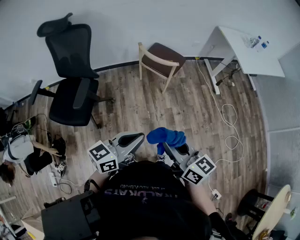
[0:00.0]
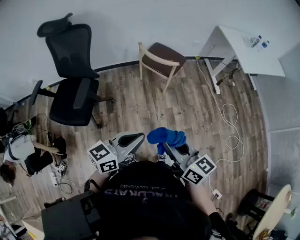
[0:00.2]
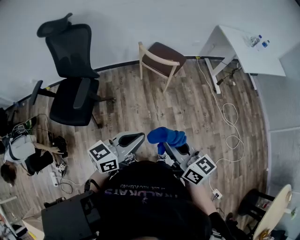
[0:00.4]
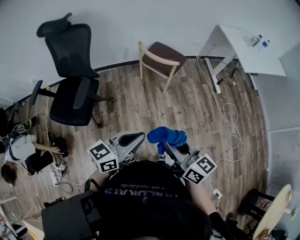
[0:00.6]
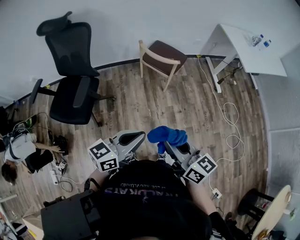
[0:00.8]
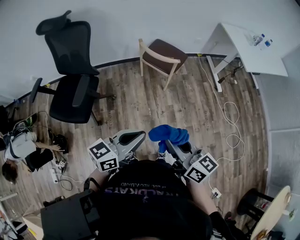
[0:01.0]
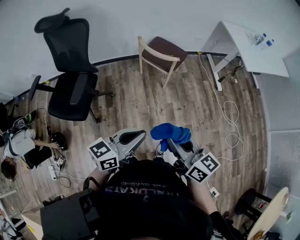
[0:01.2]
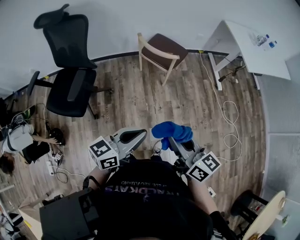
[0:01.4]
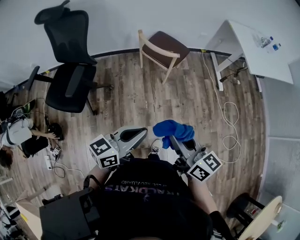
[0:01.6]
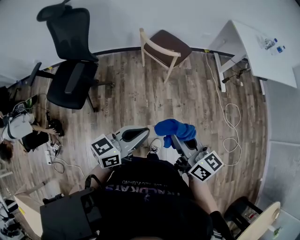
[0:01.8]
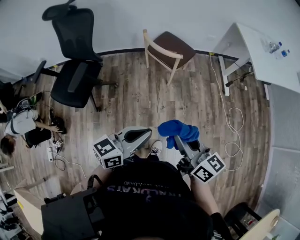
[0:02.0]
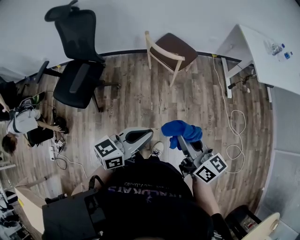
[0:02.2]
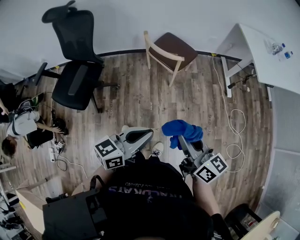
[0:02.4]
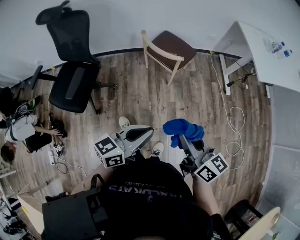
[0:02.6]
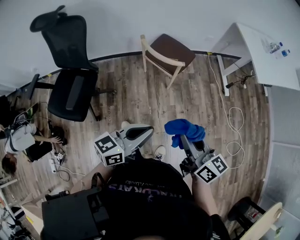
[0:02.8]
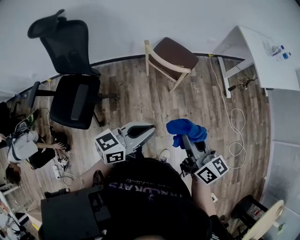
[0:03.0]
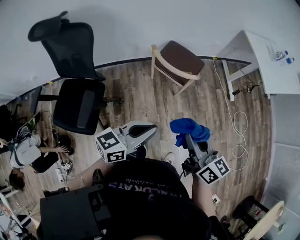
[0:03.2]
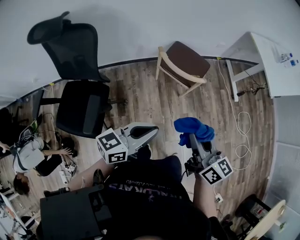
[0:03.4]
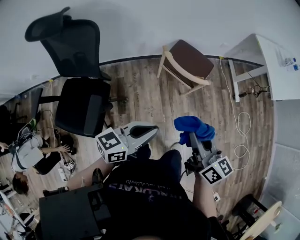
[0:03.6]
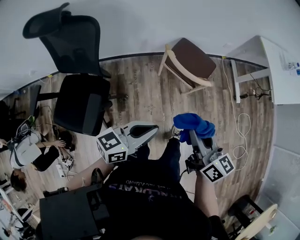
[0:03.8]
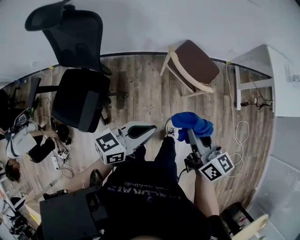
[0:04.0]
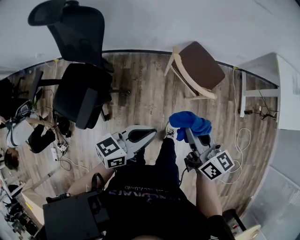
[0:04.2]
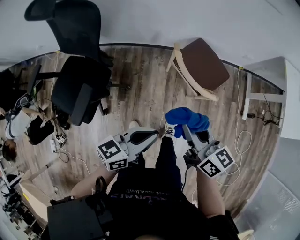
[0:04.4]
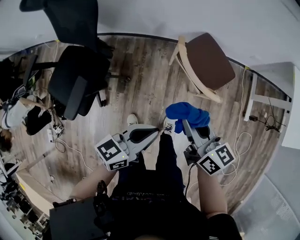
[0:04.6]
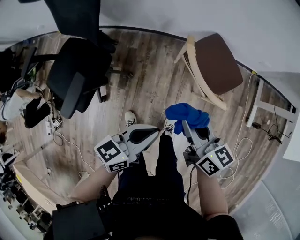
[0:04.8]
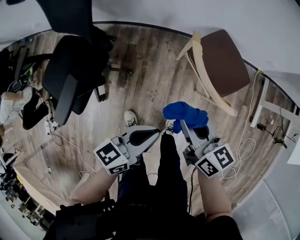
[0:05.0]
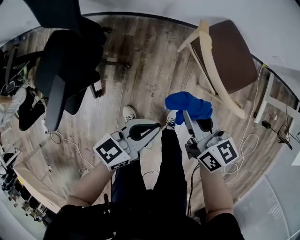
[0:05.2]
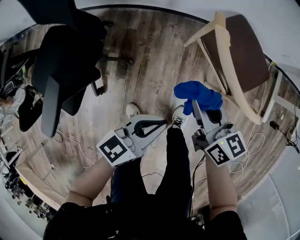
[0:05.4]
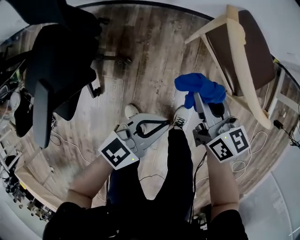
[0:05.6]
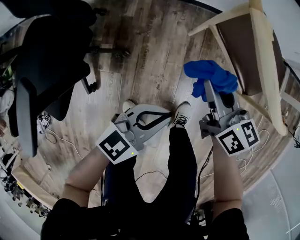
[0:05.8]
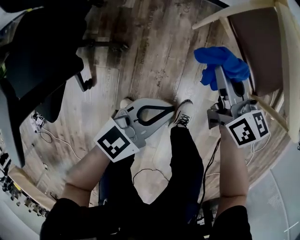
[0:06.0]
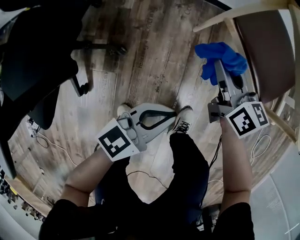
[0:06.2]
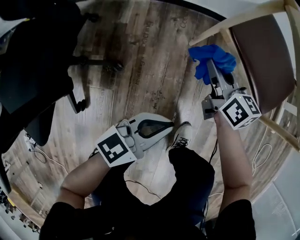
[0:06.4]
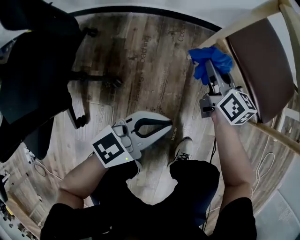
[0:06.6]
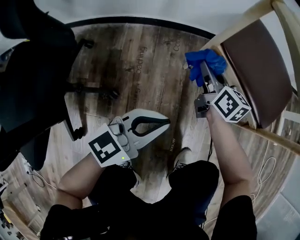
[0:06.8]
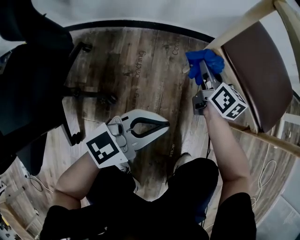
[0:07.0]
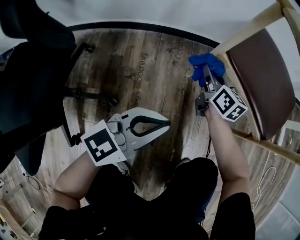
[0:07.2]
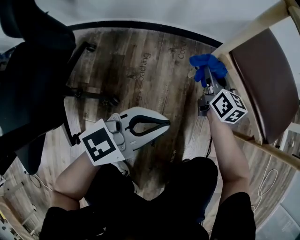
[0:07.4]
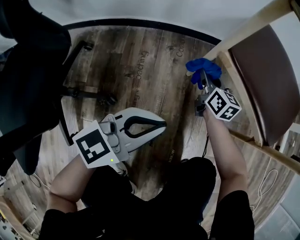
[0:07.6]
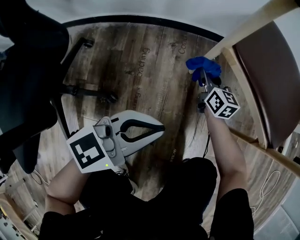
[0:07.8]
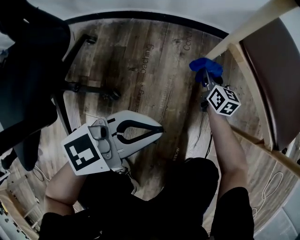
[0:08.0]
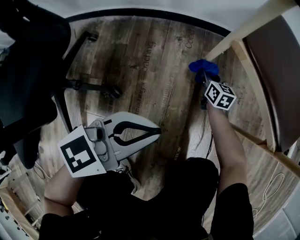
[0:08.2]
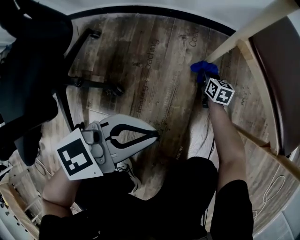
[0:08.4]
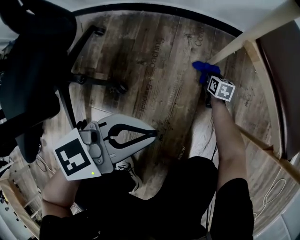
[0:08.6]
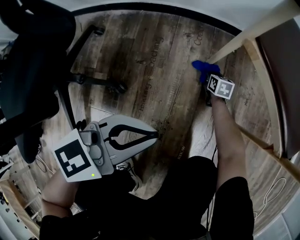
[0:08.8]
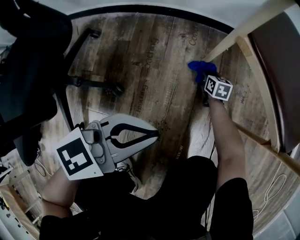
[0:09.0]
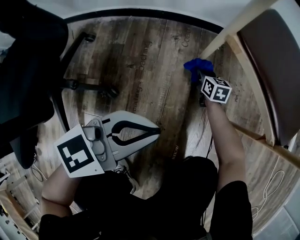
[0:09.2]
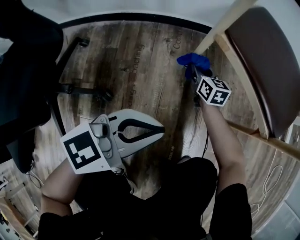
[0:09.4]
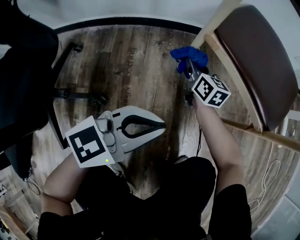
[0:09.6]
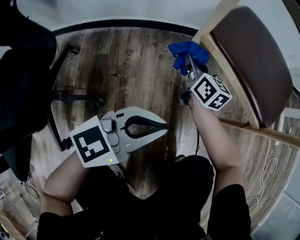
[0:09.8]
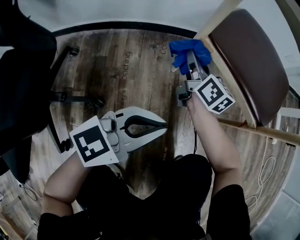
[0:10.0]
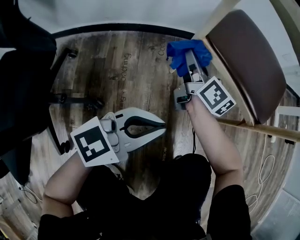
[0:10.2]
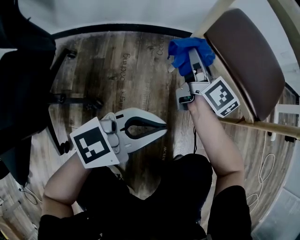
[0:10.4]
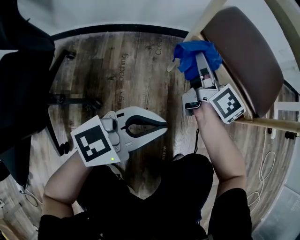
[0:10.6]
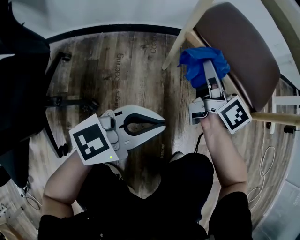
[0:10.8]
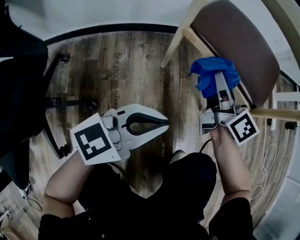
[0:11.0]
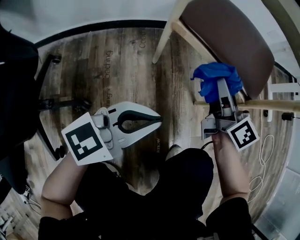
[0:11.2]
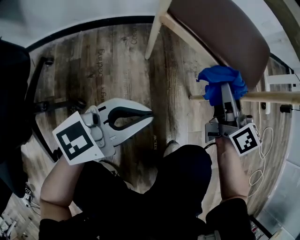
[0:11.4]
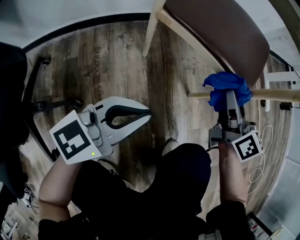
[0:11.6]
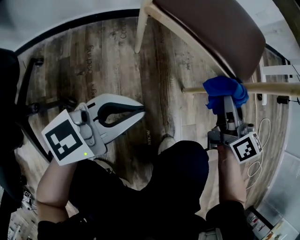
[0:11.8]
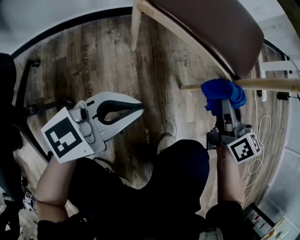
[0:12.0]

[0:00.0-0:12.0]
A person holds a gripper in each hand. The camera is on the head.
0:00.0 to 0:01.6: The left gripper heads to the right, covering about 10 cm, while the right gripper heads to the right and forward, covering roughly 10 cm.
0:01.6 to 0:03.0: The right gripper heads forward, covering roughly 15 cm. The left gripper moves forward and to the left, approximately 15 cm.
0:03.0 to 0:04.4: The right gripper moves forward and to the left, approximately 25 cm, while the left gripper shifts approximately 20 cm forward, downward and to the left.
0:04.4 to 0:06.0: The grippers both shift downward by about 40 cm. The left gripper swivels about 20 degrees.
0:06.0 to 0:07.6: The left gripper goes approximately 15 cm downward and forward. The right gripper travels downward and forward by roughly 30 cm.
0:07.6 to 0:09.0: The right gripper moves downward, roughly 25 cm, and swivels about 20 degrees.
0:09.0 to 0:10.4: The right gripper goes about 35 cm upward, and tilts its fingers some 40 degrees upward. The left gripper moves roughly 5 cm.
0:10.4 to 0:12.0: The right gripper travels to the right by roughly 30 cm, and rotates some 20 degrees, while the left gripper moves roughly 5 cm.

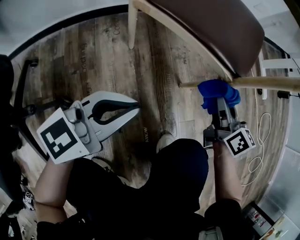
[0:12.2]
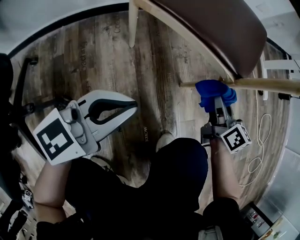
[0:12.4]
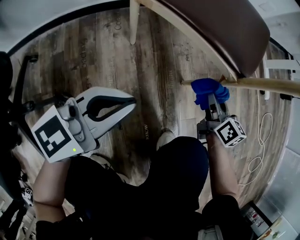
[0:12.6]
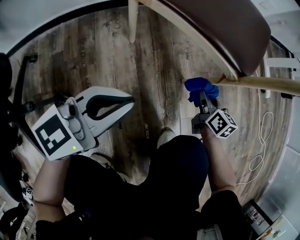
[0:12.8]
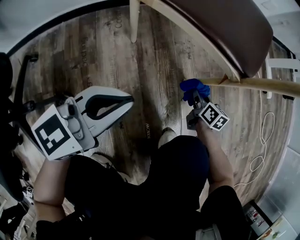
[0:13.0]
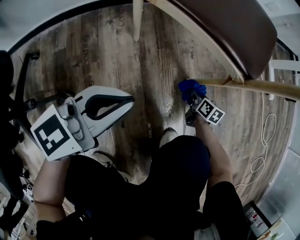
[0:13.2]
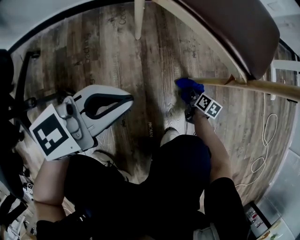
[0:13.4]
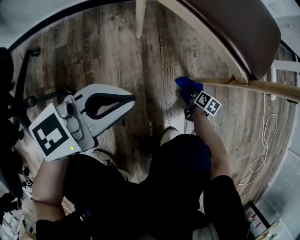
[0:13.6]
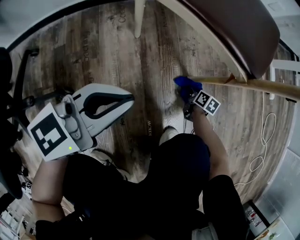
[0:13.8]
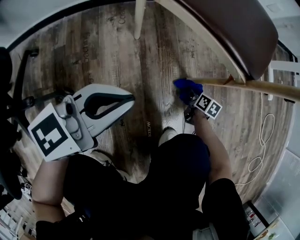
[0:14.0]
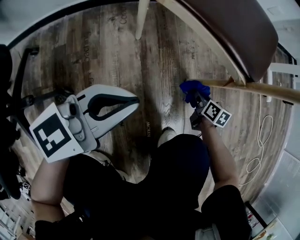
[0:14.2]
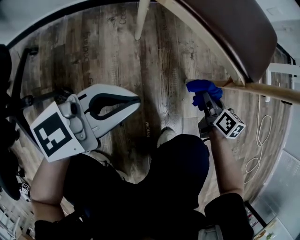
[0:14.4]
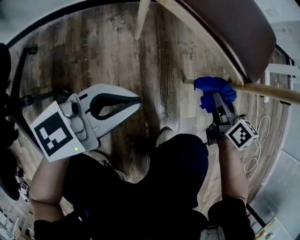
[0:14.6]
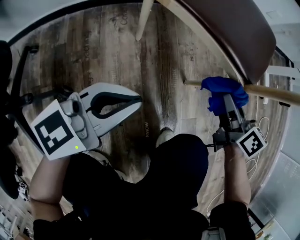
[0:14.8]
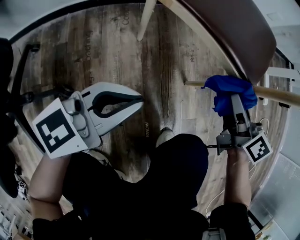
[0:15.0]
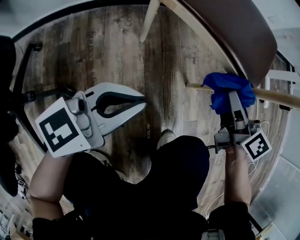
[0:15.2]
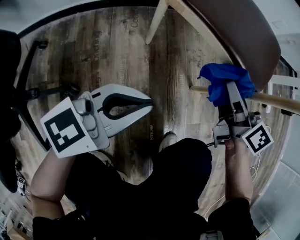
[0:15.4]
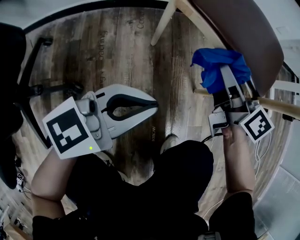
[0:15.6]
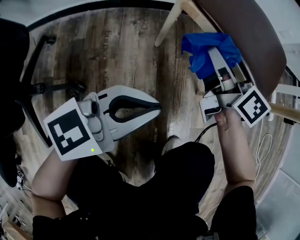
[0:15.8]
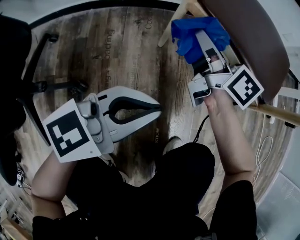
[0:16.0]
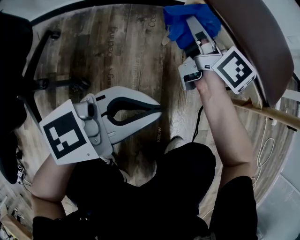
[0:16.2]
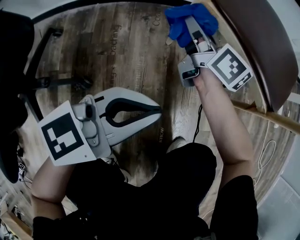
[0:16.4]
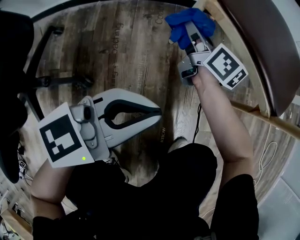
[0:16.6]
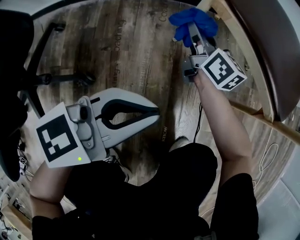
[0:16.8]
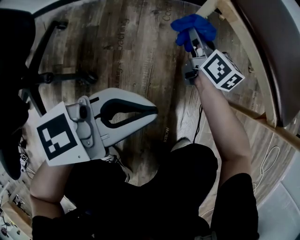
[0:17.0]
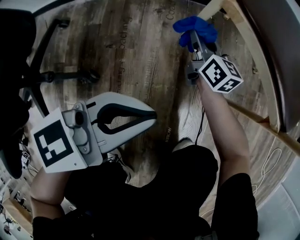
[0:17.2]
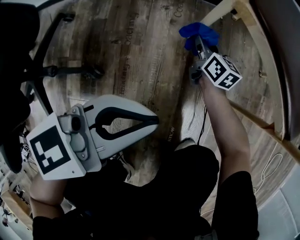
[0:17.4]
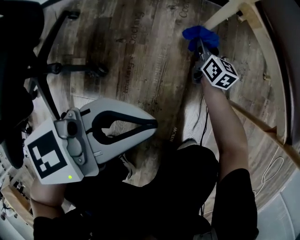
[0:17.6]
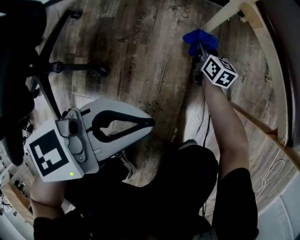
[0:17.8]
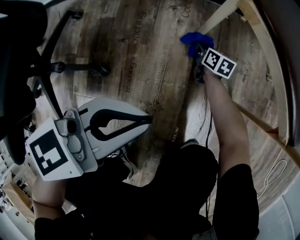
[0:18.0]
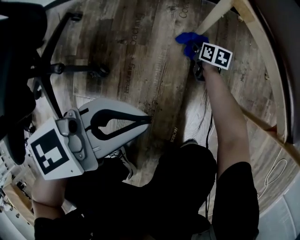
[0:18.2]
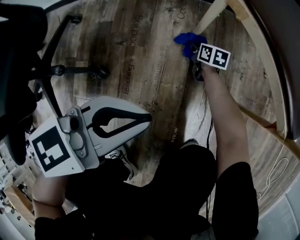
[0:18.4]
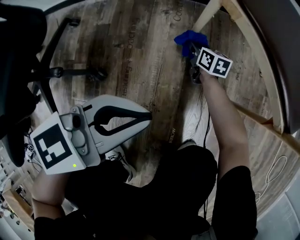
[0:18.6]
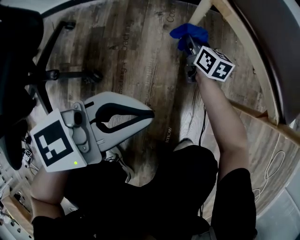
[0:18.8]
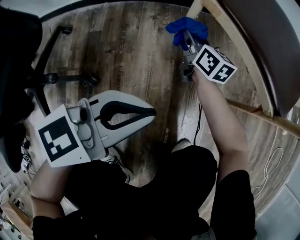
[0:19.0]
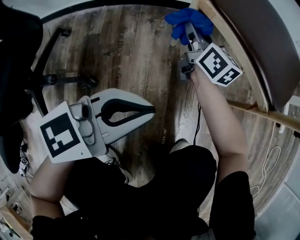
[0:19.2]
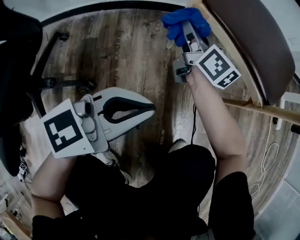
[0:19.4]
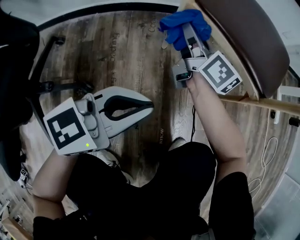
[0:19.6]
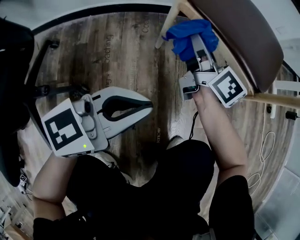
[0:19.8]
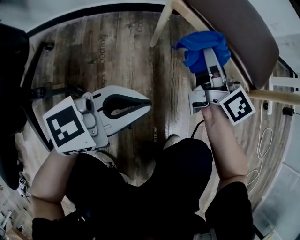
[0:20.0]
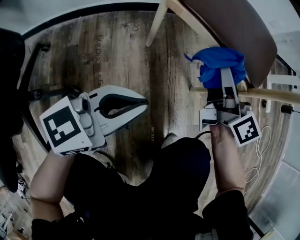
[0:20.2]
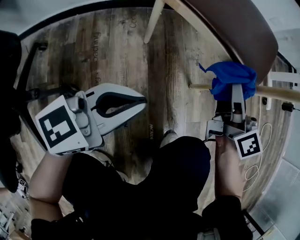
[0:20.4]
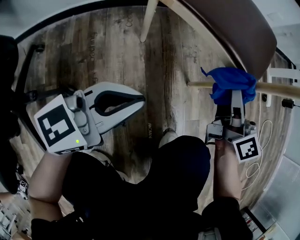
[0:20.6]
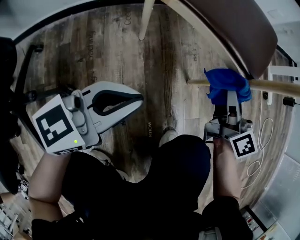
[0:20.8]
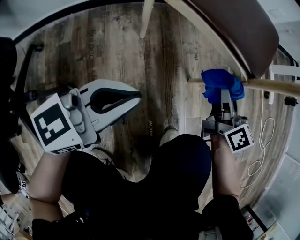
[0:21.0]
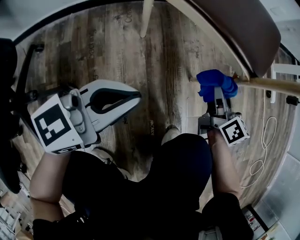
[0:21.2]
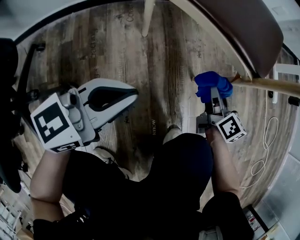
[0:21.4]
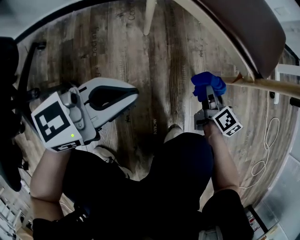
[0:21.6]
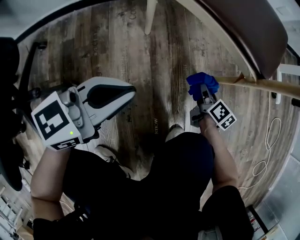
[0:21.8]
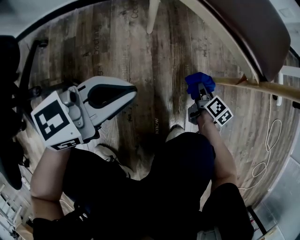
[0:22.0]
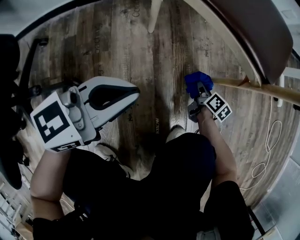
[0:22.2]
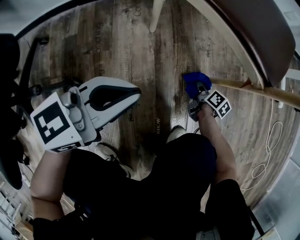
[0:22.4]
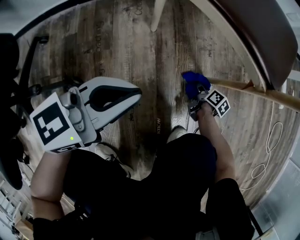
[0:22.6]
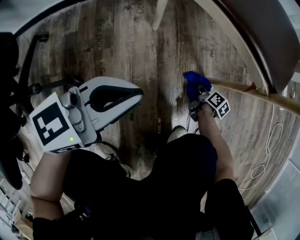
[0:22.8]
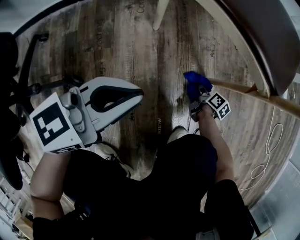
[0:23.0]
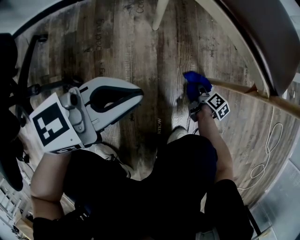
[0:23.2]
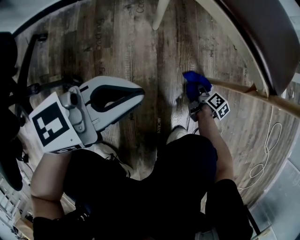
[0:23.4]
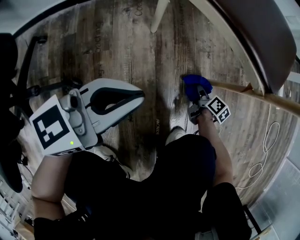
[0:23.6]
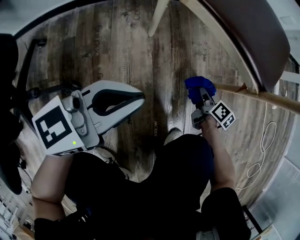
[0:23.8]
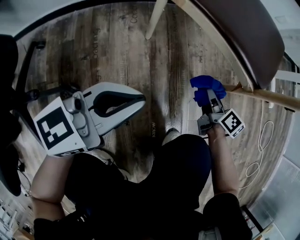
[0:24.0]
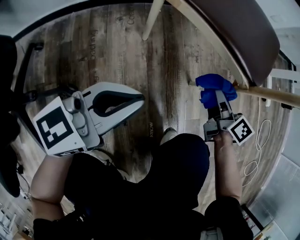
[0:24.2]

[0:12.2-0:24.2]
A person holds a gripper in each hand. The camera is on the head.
0:12.2 to 0:13.8: The right gripper goes roughly 35 cm downward, and tilts its fingers about 30 degrees downward.
0:13.8 to 0:15.2: The right gripper heads upward, covering roughly 40 cm, and tips its fingers upward by about 30 degrees.
0:15.2 to 0:16.6: The right gripper goes some 30 cm to the left, forward and downward.
0:16.6 to 0:18.2: The right gripper goes some 25 cm downward, and points its fingers some 30 degrees further downward.
0:18.2 to 0:19.8: The right gripper goes some 35 cm upward, and points its fingers about 40 degrees further upward.
0:19.8 to 0:21.2: The right gripper shifts some 20 cm to the right, and changes its angle by roughly 20 degrees.
0:21.2 to 0:22.6: The right gripper shifts roughly 25 cm downward, and angles its fingers downward, by approximately 30 degrees.
0:22.6 to 0:24.2: The right gripper moves upward, approximately 25 cm, and turns by some 30 degrees.
